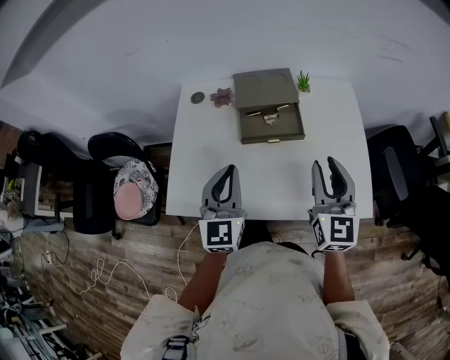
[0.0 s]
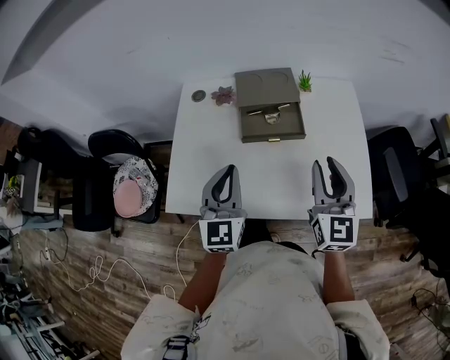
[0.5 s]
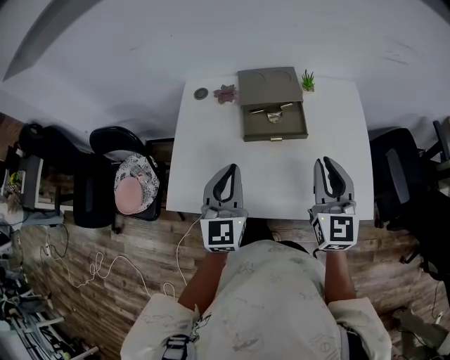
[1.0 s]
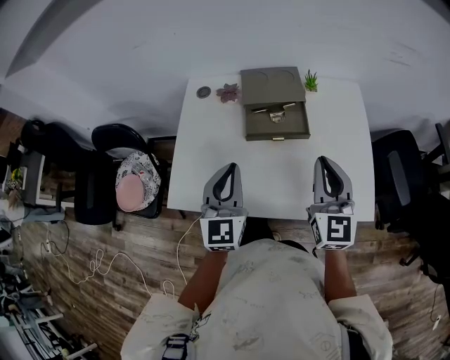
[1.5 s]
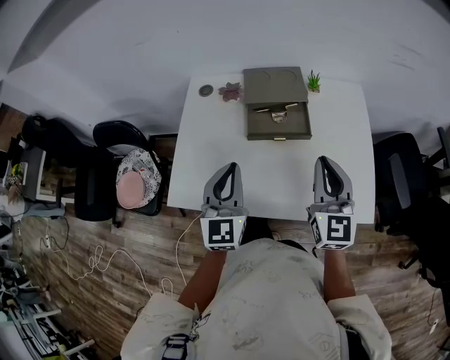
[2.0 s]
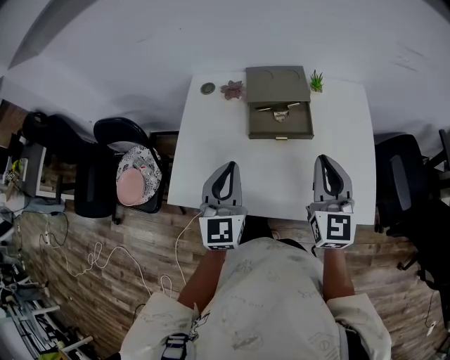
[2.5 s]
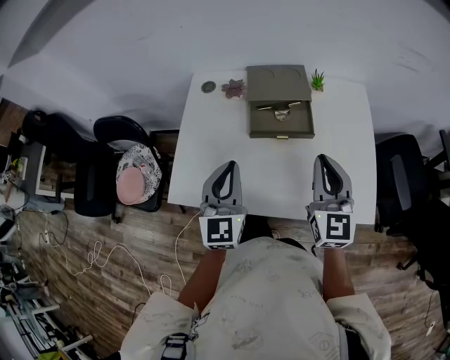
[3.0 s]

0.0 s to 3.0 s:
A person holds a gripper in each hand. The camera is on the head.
0.0 to 1.5 s: The right gripper closes up.
1.5 to 3.0 s: Neither gripper changes place.

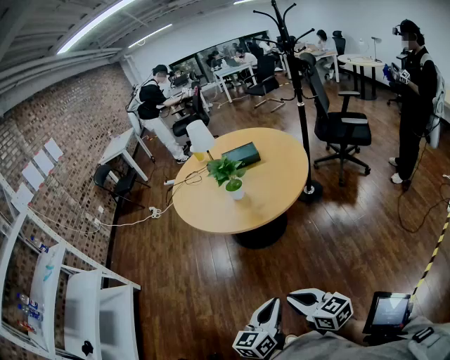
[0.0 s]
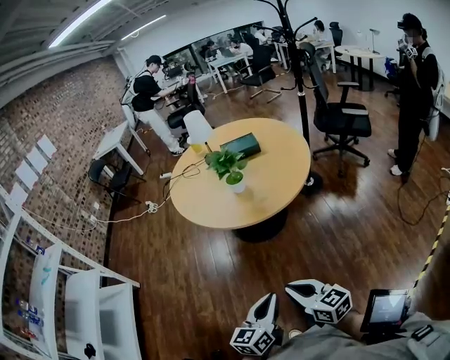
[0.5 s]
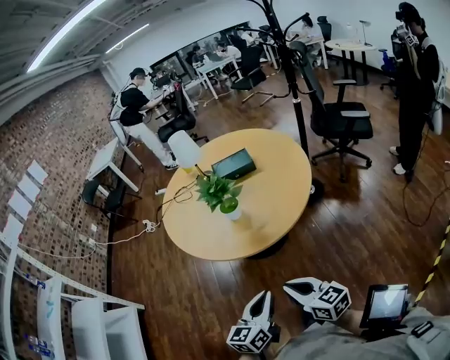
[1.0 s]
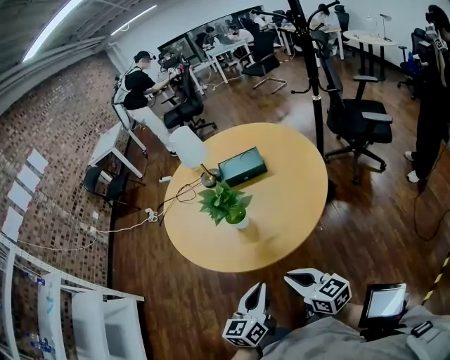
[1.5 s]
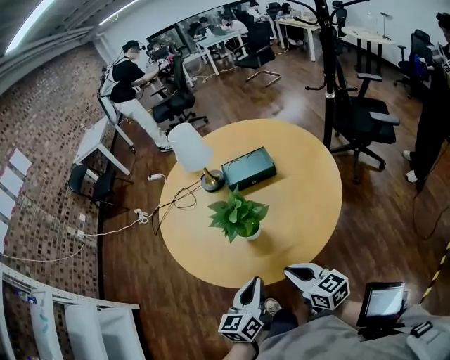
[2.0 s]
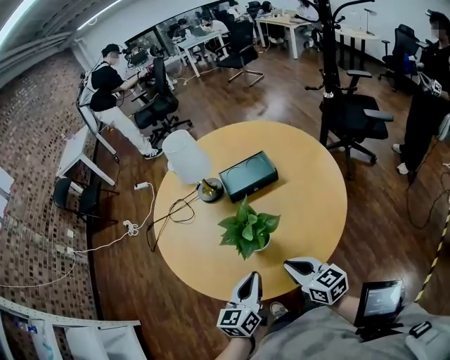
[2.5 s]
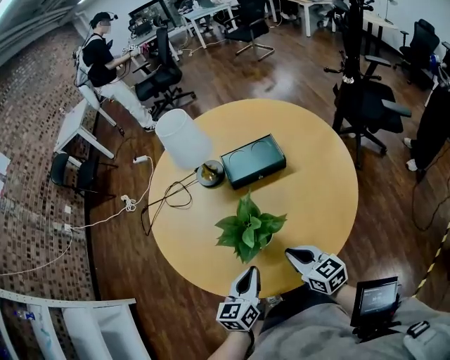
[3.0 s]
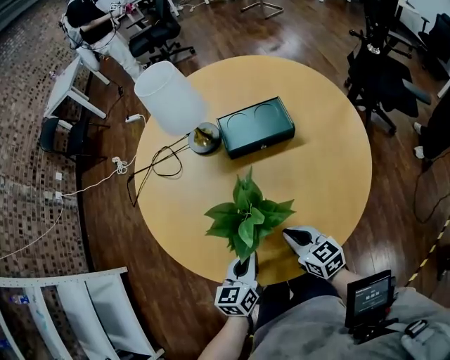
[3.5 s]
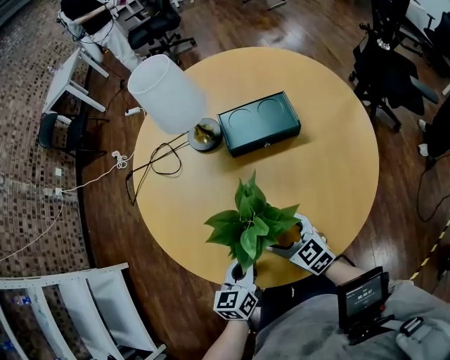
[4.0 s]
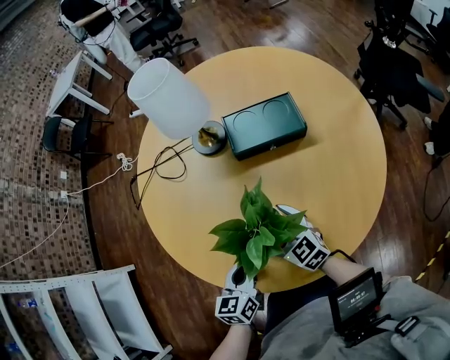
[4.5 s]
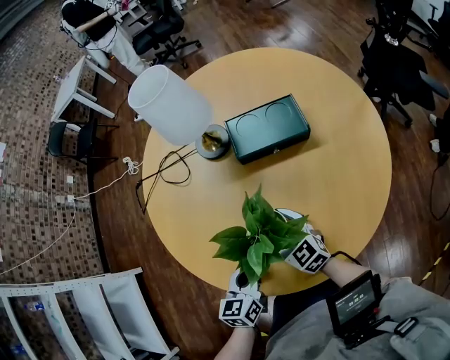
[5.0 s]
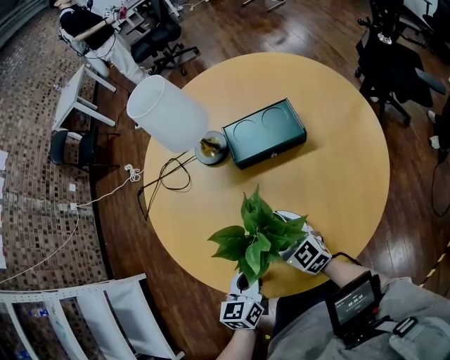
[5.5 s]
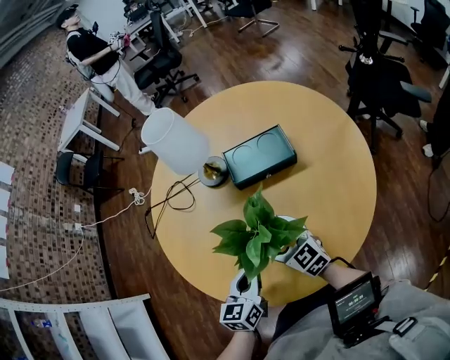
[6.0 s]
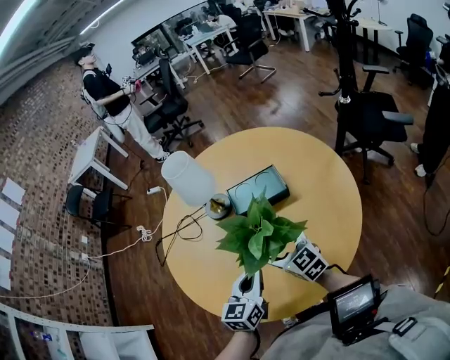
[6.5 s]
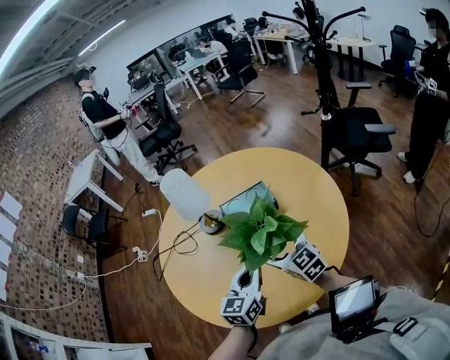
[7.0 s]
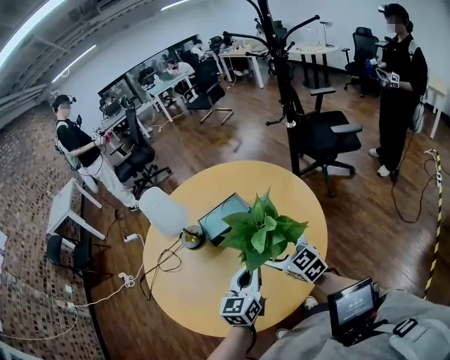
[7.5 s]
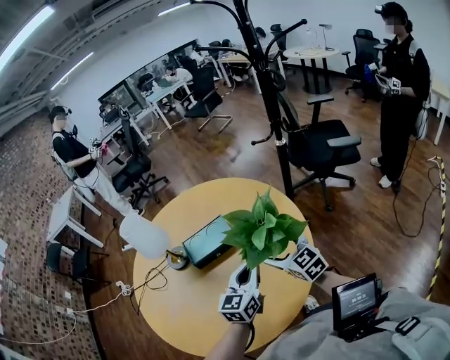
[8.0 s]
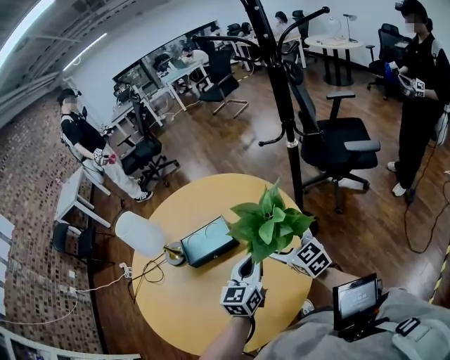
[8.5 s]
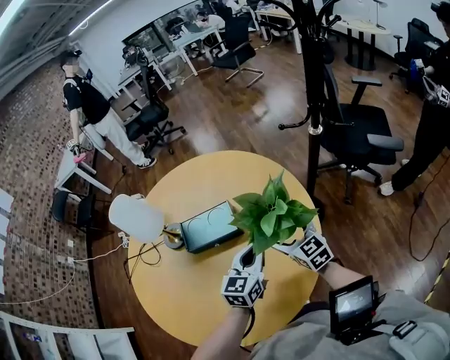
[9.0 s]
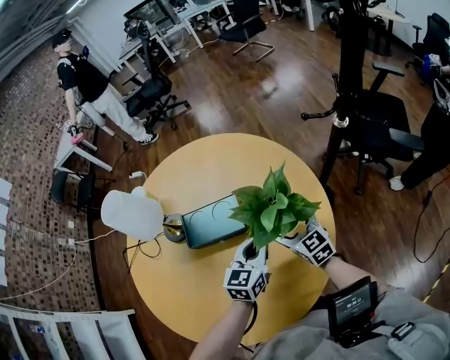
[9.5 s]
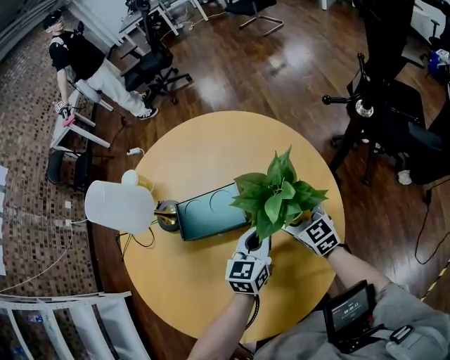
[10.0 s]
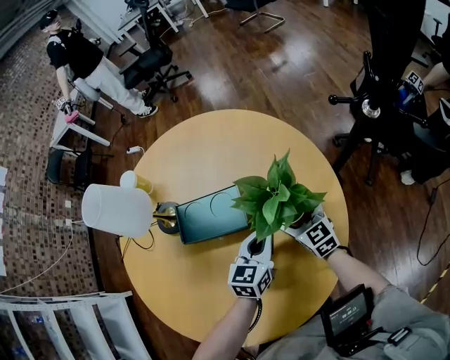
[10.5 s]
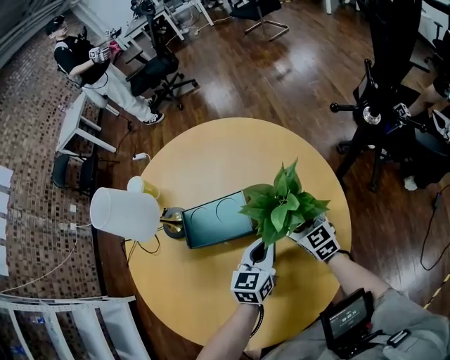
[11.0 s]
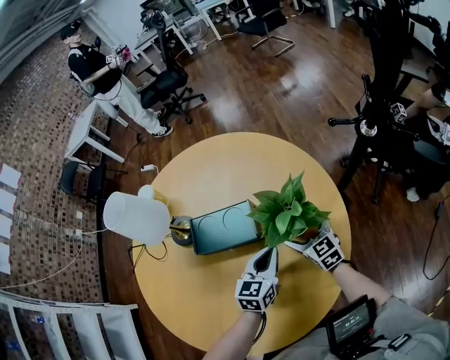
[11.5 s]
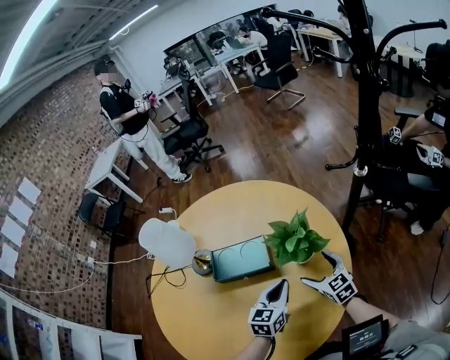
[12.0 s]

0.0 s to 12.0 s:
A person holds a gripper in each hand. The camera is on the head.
0.0 to 2.0 s: Both grippers are carried forward, approximately 50 cm.
2.0 to 4.0 s: The grippers both shift forward and downward by approximately 25 cm. The right gripper rotates approximately 20 degrees, and opens.
4.0 to 6.0 s: The left gripper is displaced upward by about 5 cm. Meanwhile the right gripper travels forward and upward by roughly 10 cm.
6.0 to 8.0 s: Both grippers travel together to the right and upward, about 25 cm. The right gripper turns by about 20 degrees. Meanwhile the left gripper rotates approximately 30 degrees.
8.0 to 10.0 s: The grippers both shift forward and downward by roughly 25 cm. The left gripper rotates some 20 degrees.
10.0 to 12.0 s: Both grippers move backward, some 5 cm.

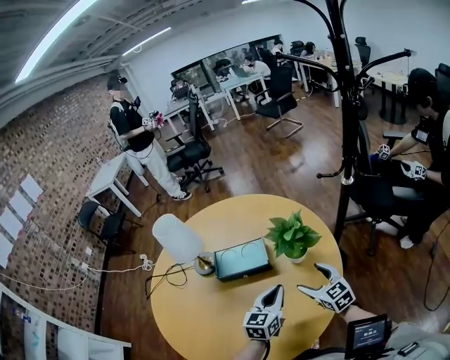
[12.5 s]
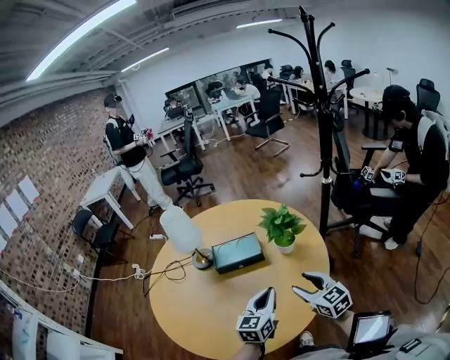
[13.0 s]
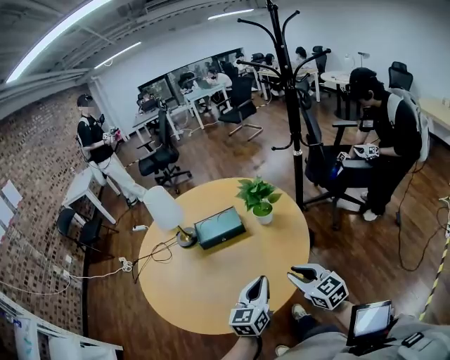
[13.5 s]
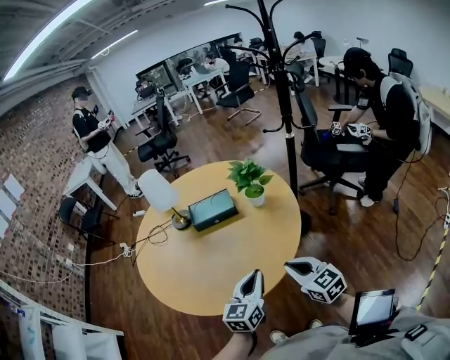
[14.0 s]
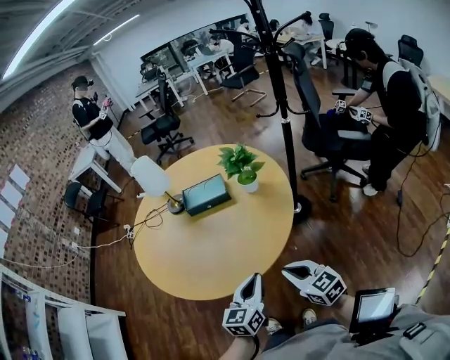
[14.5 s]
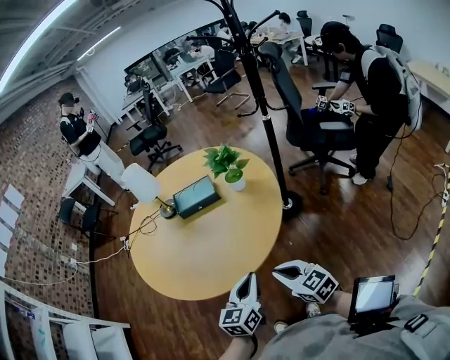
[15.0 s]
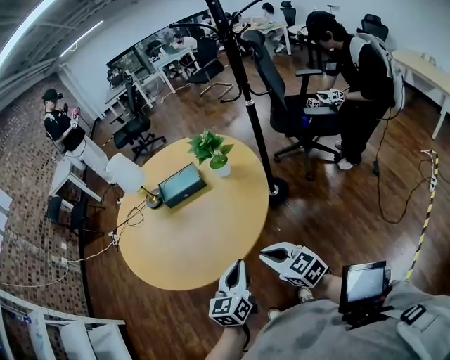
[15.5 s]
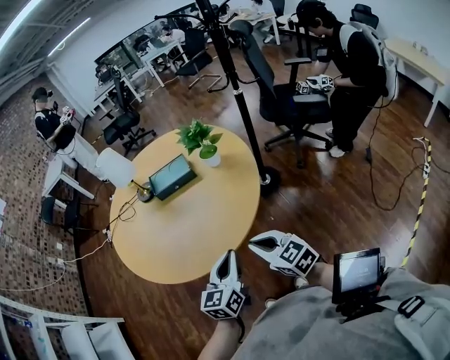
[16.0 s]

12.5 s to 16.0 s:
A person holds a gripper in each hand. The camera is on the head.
12.5 to 14.5 s: Both grippers travel together backward, about 35 cm. The right gripper closes its fingers.
14.5 to 16.0 s: The right gripper shifts by roughly 5 cm.

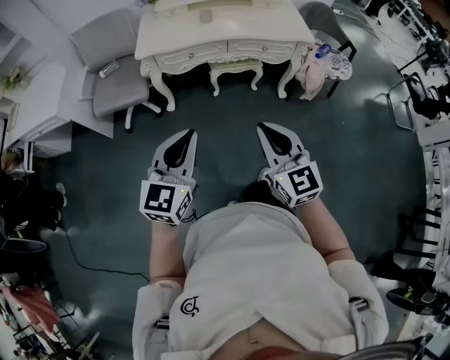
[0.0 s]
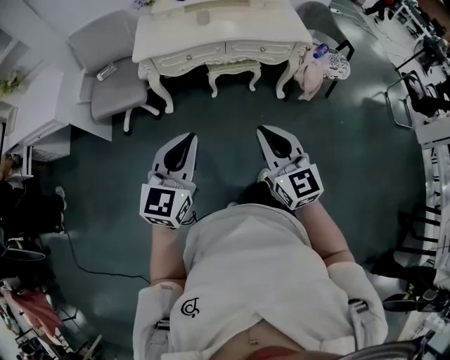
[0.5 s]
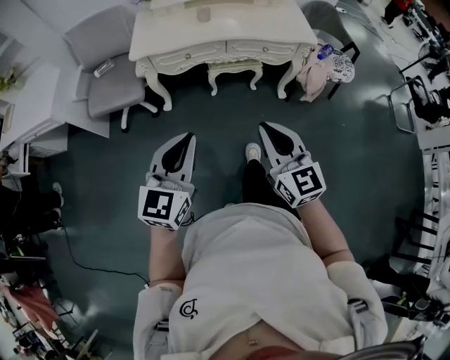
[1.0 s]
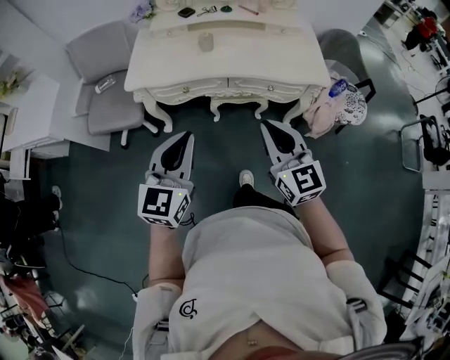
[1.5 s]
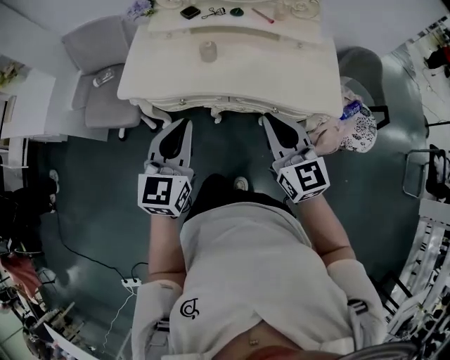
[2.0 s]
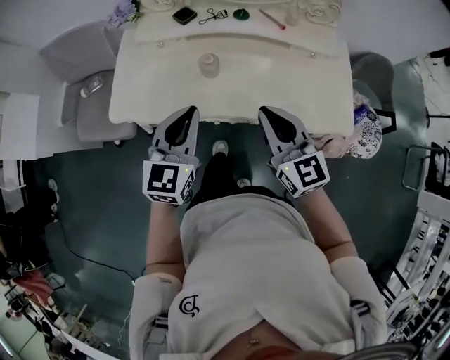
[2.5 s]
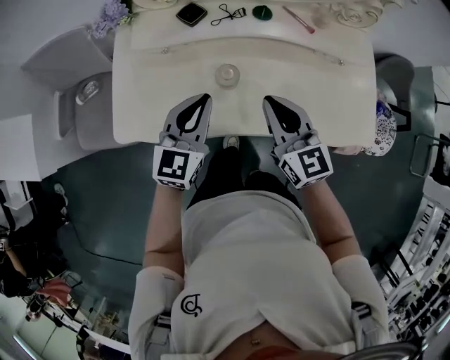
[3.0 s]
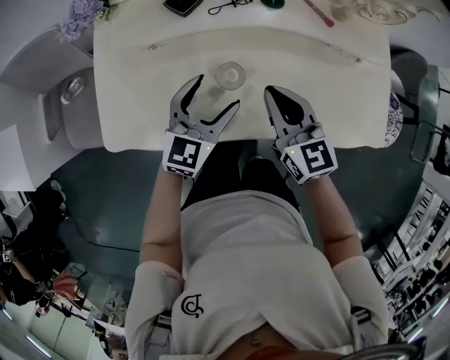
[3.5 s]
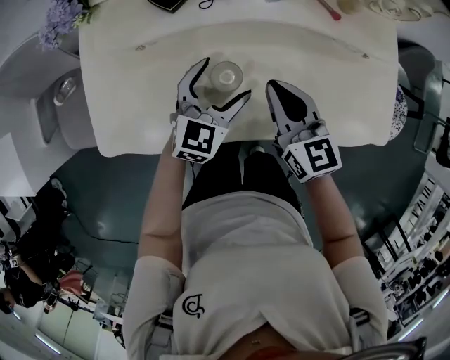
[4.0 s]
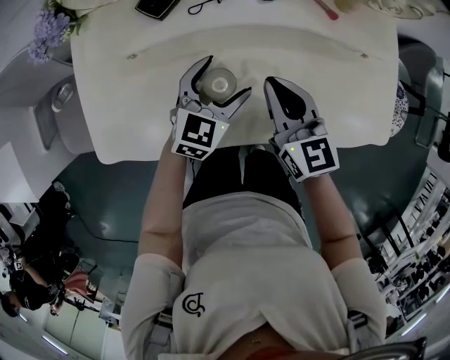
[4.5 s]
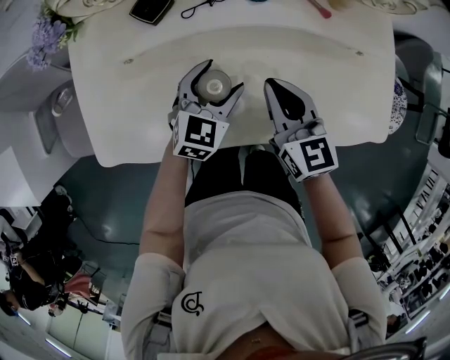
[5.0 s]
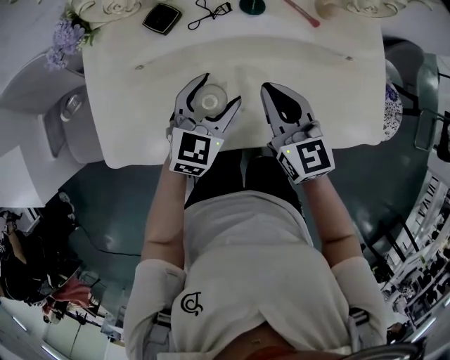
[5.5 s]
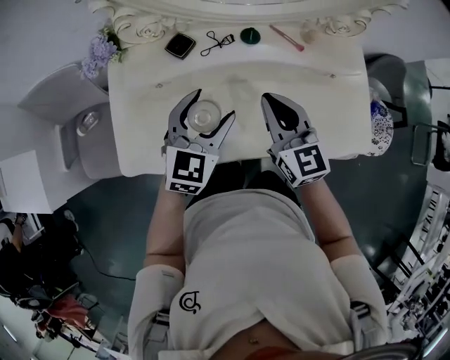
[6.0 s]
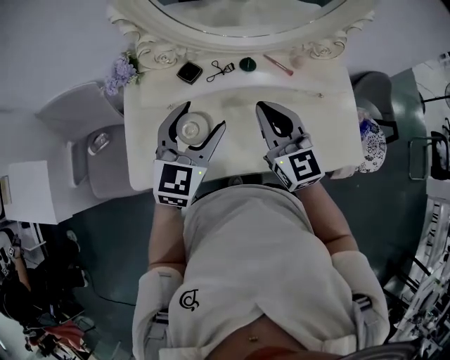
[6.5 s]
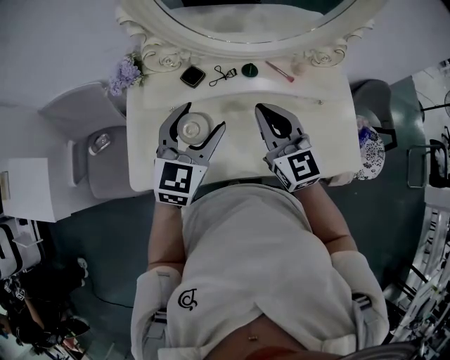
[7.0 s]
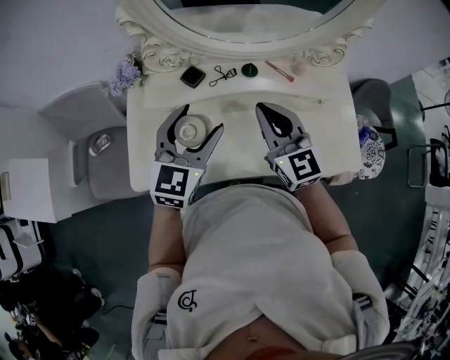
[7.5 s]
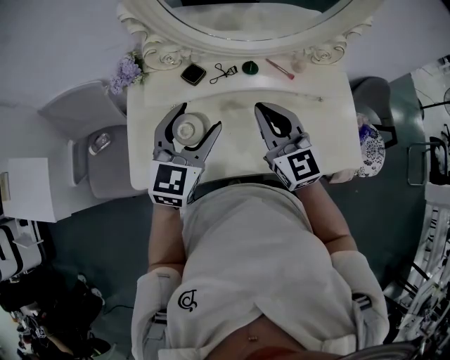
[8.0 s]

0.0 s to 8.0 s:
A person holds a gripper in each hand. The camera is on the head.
0.0 to 2.0 s: Both grippers are carried forward, approximately 40 cm.
2.0 to 4.0 s: Both grippers move forward and downward, about 40 cm. The left gripper changes its angle by approximately 30 degrees, and opens. The right gripper swivels about 20 degrees.
4.0 to 6.0 s: The grippers both shift upward by roughly 10 cm.
6.0 to 8.0 s: The grippers both shift upward by roughly 10 cm.
